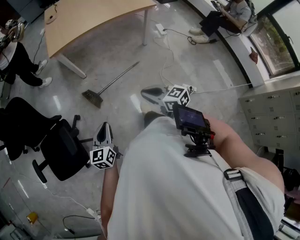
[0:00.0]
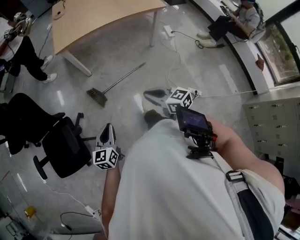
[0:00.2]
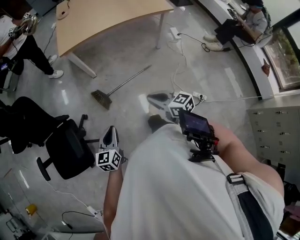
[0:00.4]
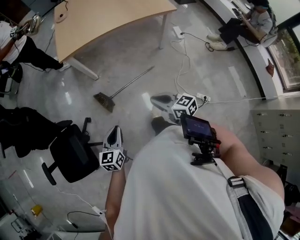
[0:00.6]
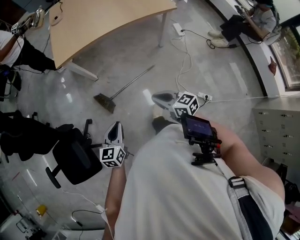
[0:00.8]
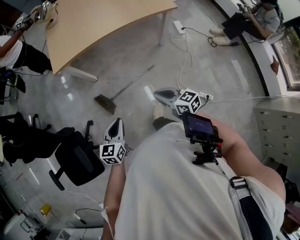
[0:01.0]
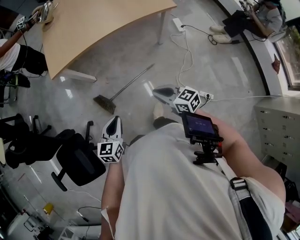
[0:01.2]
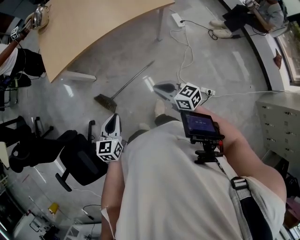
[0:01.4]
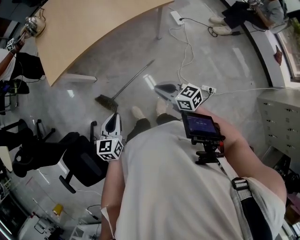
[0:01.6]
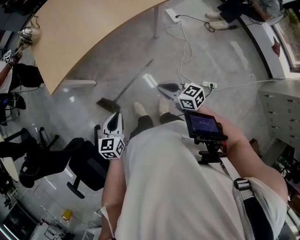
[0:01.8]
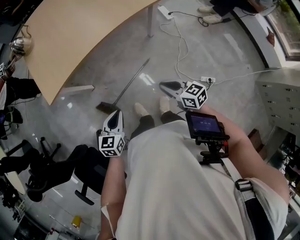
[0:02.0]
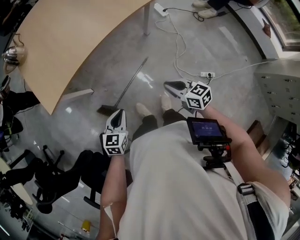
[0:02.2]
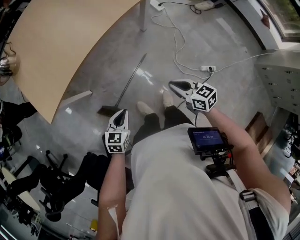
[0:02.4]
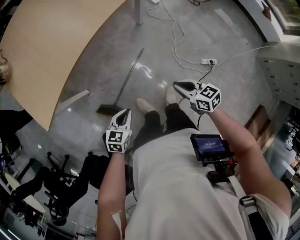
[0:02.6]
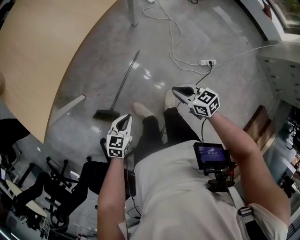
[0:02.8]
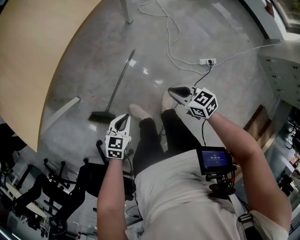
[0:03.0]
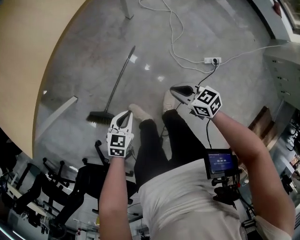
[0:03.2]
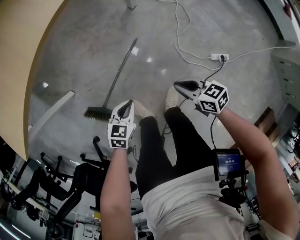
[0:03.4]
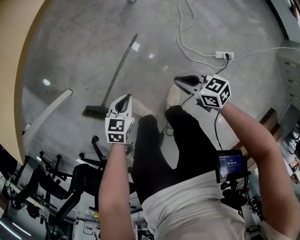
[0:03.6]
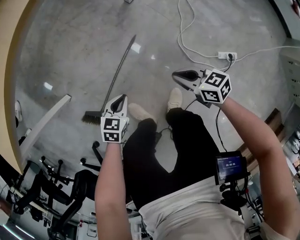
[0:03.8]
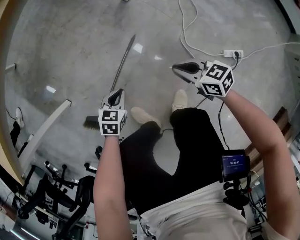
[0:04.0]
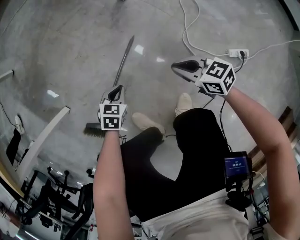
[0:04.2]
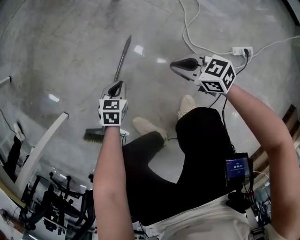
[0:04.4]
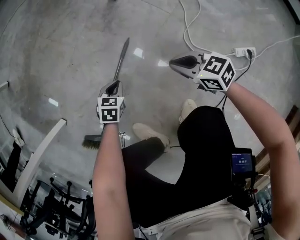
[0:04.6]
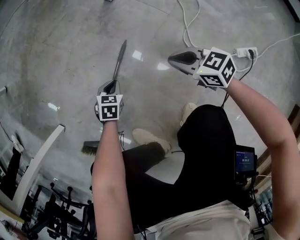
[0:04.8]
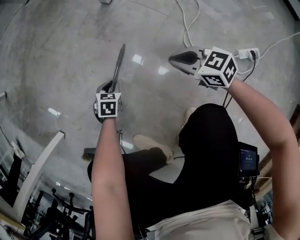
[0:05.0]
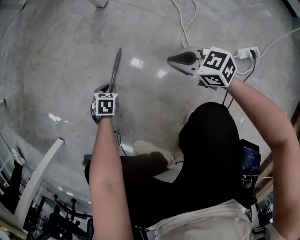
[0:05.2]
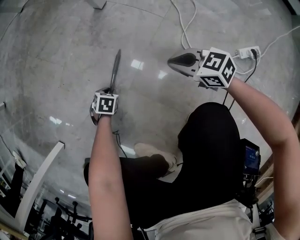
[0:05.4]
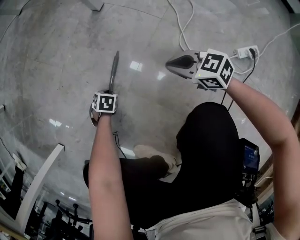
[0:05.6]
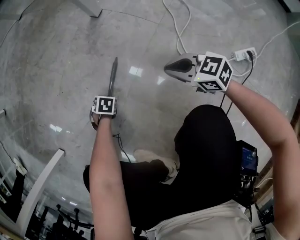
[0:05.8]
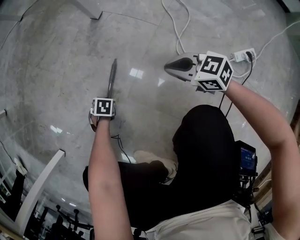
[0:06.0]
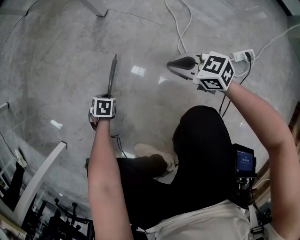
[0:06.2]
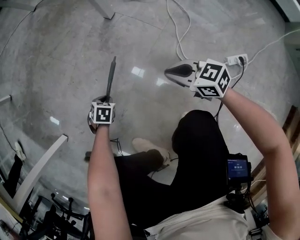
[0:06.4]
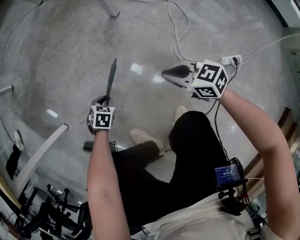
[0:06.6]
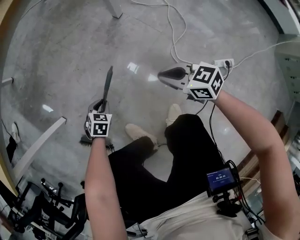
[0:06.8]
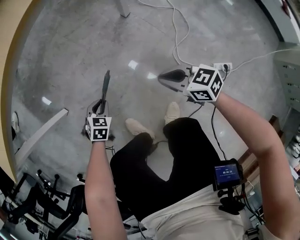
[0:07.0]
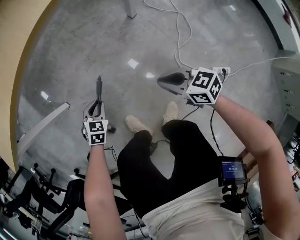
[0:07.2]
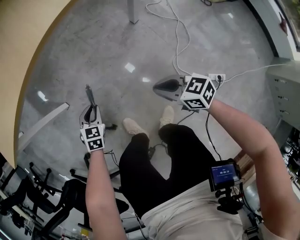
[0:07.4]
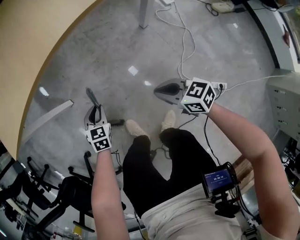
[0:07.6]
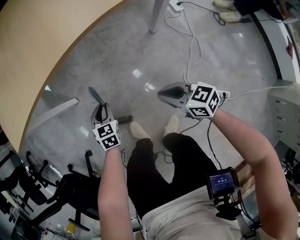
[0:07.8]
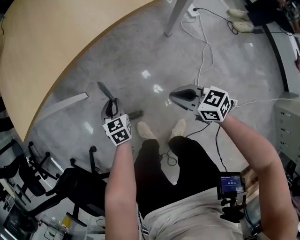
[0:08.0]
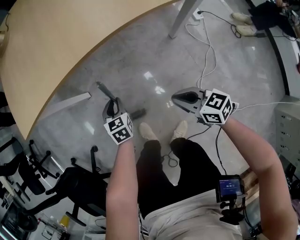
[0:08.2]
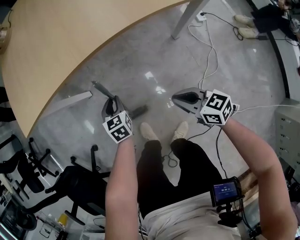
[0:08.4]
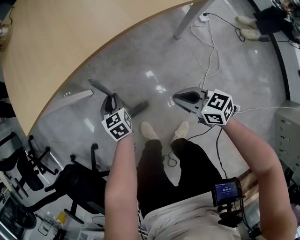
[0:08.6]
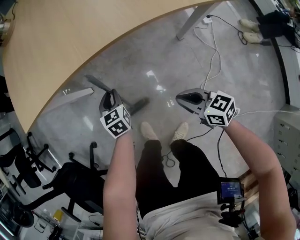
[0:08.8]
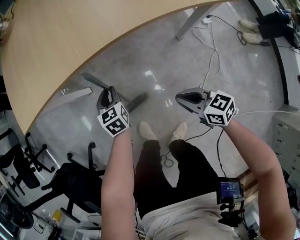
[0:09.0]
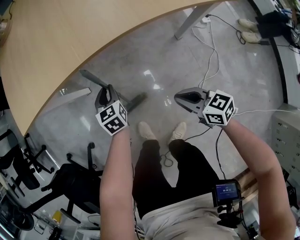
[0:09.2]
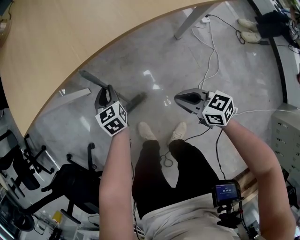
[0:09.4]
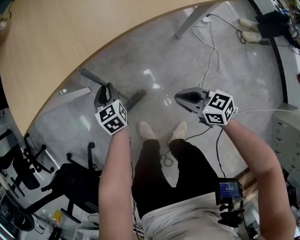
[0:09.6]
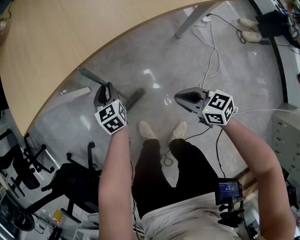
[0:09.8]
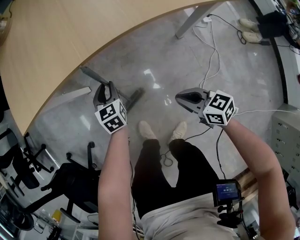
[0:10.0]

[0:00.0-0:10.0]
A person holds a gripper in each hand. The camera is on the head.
0:00.0 to 0:01.4: Both grippers move forward and to the right, some 25 cm.
0:01.4 to 0:02.8: Both grippers travel together downward, some 15 cm. The right gripper changes its angle by about 30 degrees, while the left gripper changes its angle by about 40 degrees.
0:02.8 to 0:04.2: The right gripper heads downward, covering about 25 cm. The left gripper travels downward and forward by some 35 cm.
0:04.2 to 0:05.8: The right gripper is displaced downward by approximately 15 cm. The left gripper heads downward, covering some 30 cm, and rotates roughly 30 degrees.
0:05.8 to 0:07.2: Both grippers move upward, approximately 35 cm. The left gripper rotates approximately 30 degrees.
0:07.2 to 0:08.6: The left gripper moves roughly 15 cm, and rolls counterclockwise, seen from behind, by about 40 degrees. Meanwhile the right gripper changes place by roughly 15 cm.
0:08.6 to 0:10.0: The left gripper moves approximately 5 cm.

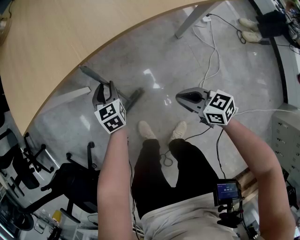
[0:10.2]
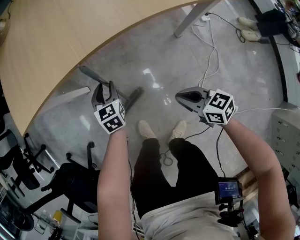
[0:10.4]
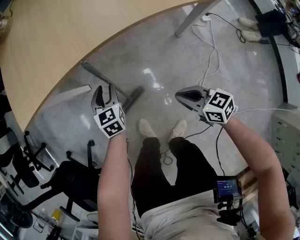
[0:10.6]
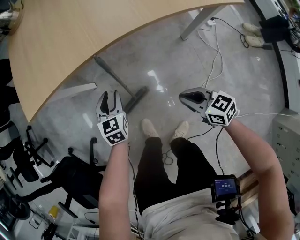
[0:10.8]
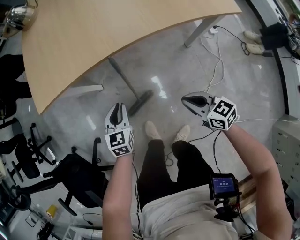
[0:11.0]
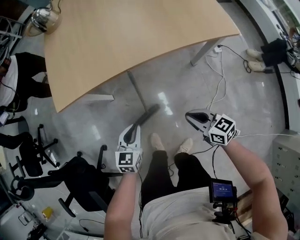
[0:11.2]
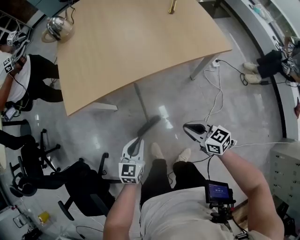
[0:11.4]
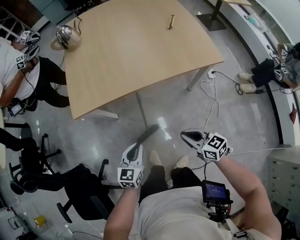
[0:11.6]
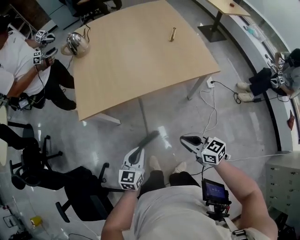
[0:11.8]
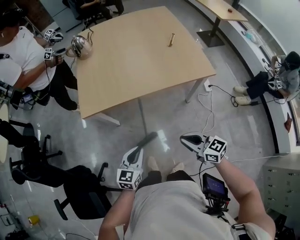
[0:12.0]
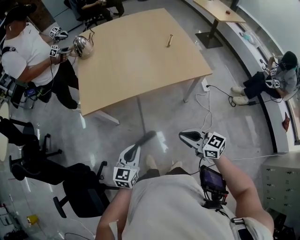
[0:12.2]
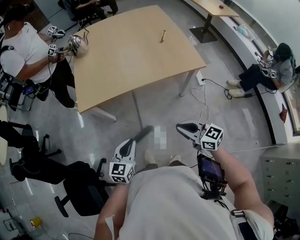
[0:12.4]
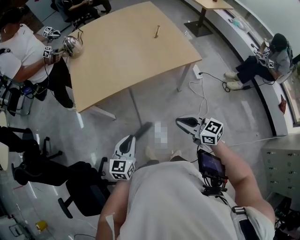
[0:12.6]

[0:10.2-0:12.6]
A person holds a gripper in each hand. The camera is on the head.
0:10.2 to 0:11.4: The right gripper heads upward, covering about 15 cm. Meanwhile the left gripper is displaced upward and backward by approximately 25 cm, swivels some 20 degrees, and closes its fingers.
0:11.4 to 0:12.6: Both grippers move upward, approximately 15 cm.

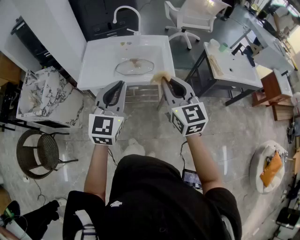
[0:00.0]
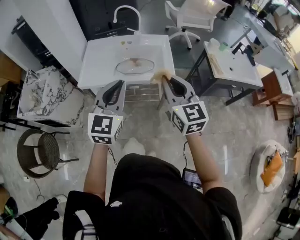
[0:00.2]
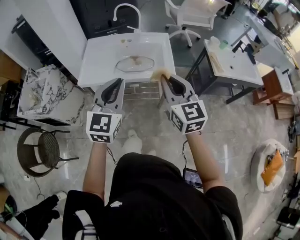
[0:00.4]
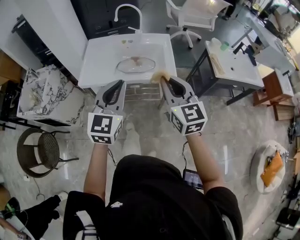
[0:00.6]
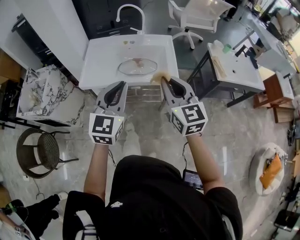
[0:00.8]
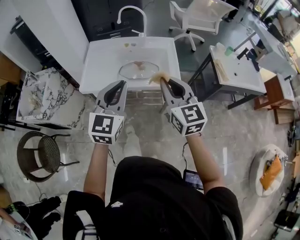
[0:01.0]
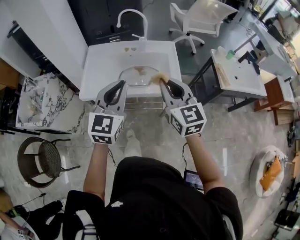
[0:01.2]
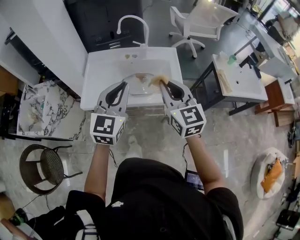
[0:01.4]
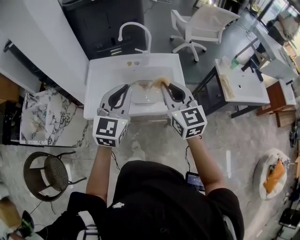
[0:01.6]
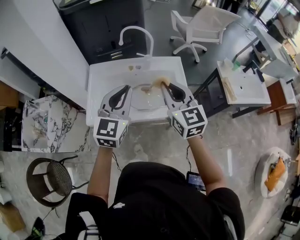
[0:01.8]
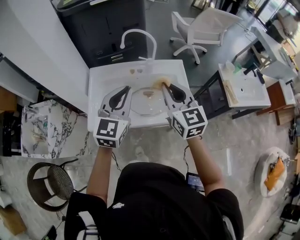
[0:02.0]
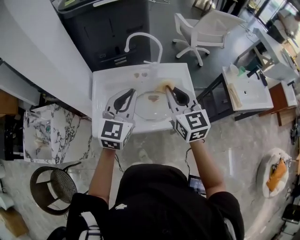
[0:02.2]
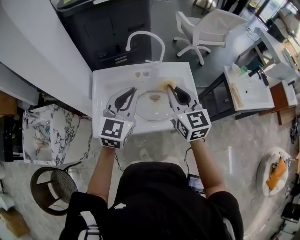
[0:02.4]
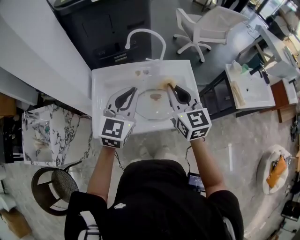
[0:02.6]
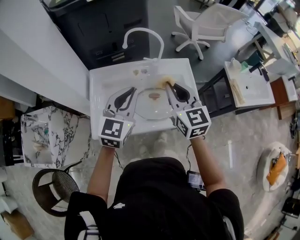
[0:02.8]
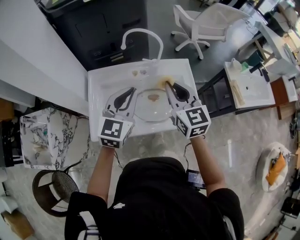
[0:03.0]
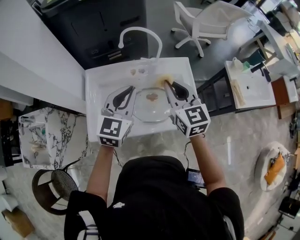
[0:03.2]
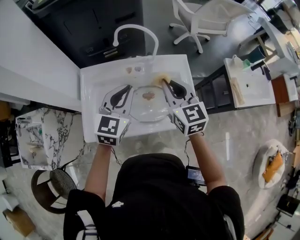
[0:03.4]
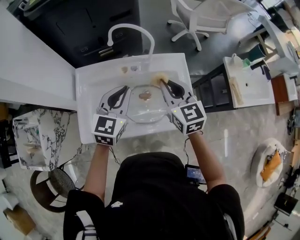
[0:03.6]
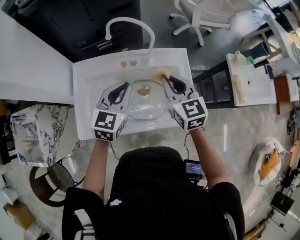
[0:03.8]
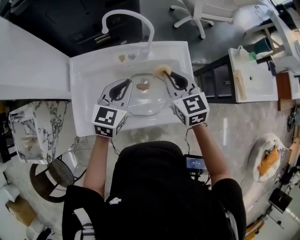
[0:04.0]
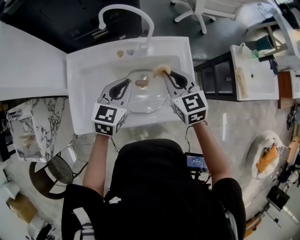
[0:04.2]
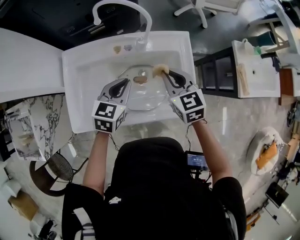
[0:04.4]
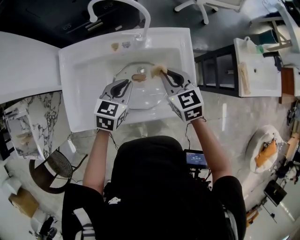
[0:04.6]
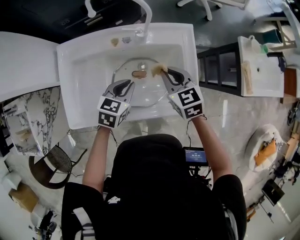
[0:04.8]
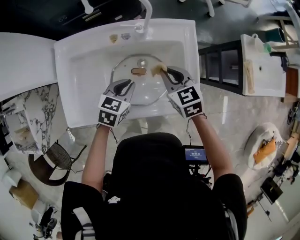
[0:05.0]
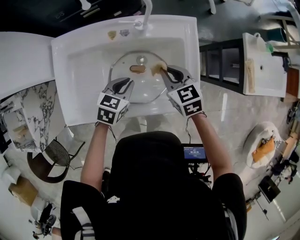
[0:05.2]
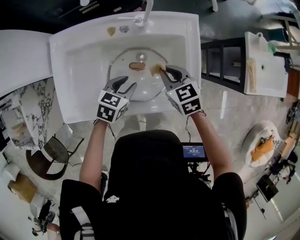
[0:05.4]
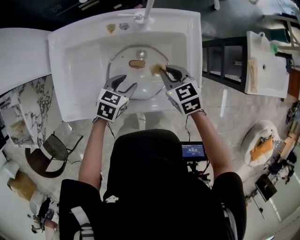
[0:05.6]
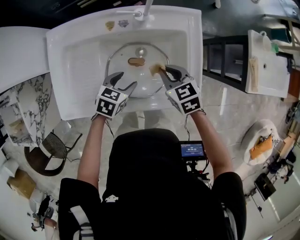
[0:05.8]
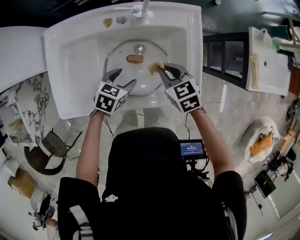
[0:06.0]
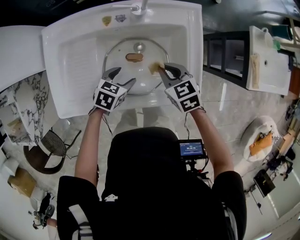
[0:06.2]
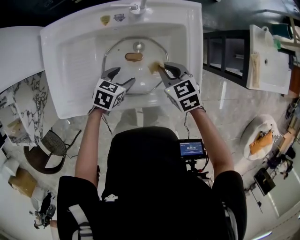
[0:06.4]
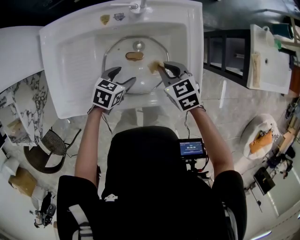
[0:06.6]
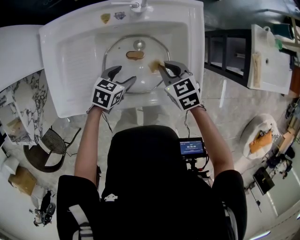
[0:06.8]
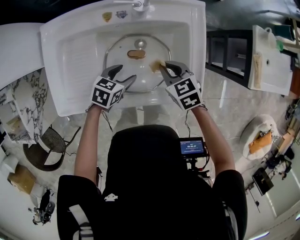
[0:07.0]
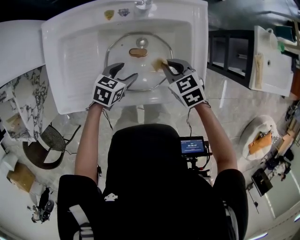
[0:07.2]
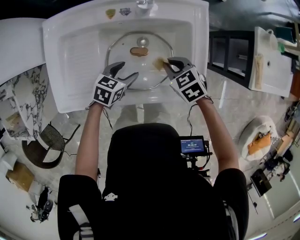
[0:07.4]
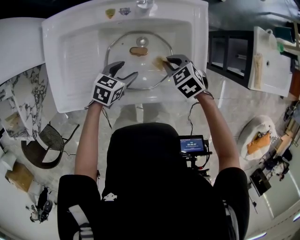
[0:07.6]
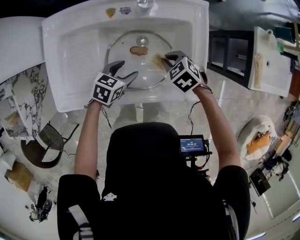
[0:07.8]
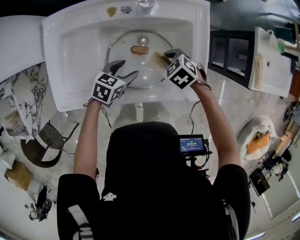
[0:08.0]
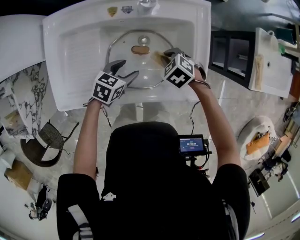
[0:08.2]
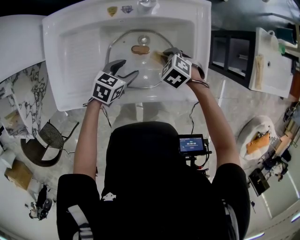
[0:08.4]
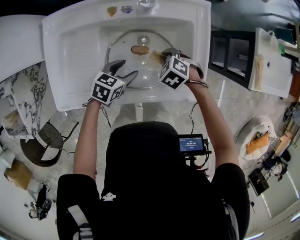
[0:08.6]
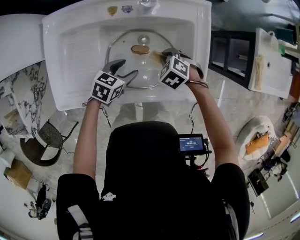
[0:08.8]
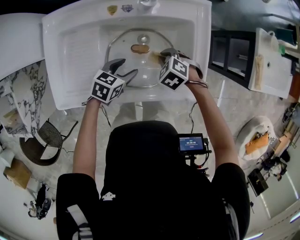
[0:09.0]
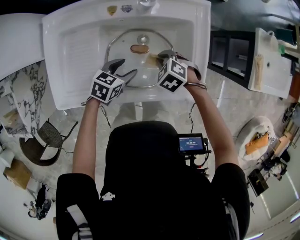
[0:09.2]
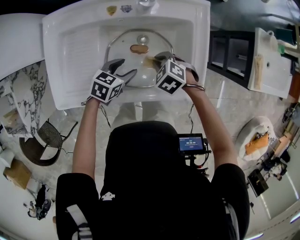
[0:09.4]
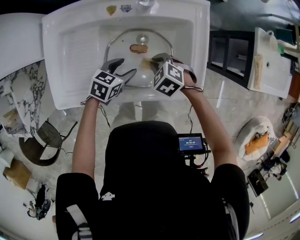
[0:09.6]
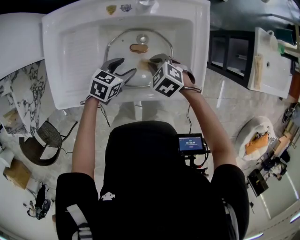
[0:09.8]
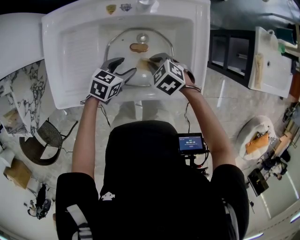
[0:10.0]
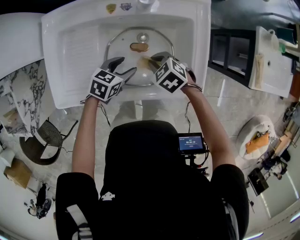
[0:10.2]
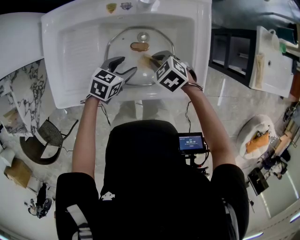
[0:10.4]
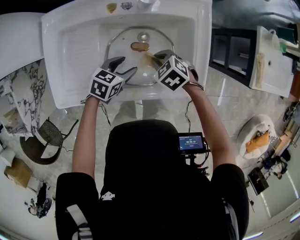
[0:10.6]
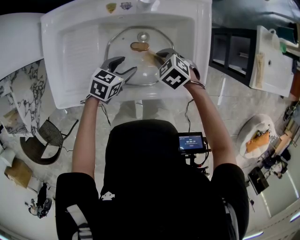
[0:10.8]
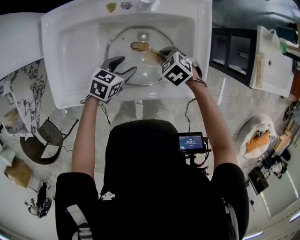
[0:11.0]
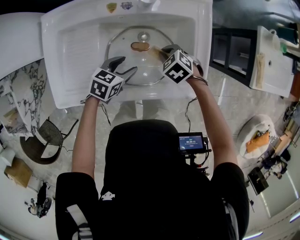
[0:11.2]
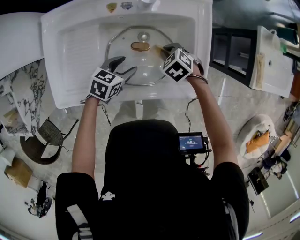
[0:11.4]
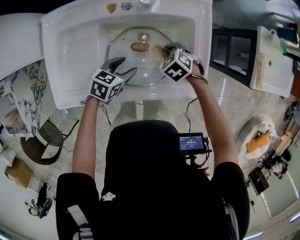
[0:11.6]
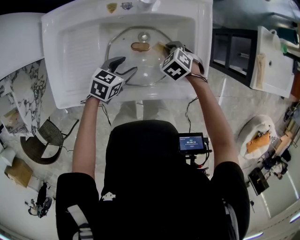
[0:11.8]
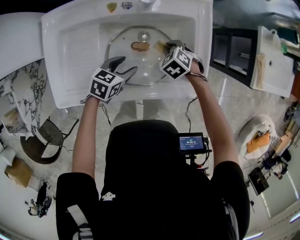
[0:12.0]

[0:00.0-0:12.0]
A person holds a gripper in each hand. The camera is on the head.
0:00.0 to 0:01.6: Both grippers travel together forward, roughly 20 cm.
0:01.6 to 0:03.0: The grippers both shift forward by approximately 15 cm.
0:03.0 to 0:04.4: The left gripper moves downward, some 20 cm, and rotates approximately 30 degrees, while the right gripper travels downward and forward by roughly 20 cm, and turns by about 20 degrees.
0:04.4 to 0:06.0: The grippers both shift downward by about 15 cm. The left gripper rotates some 30 degrees, and opens up.
0:06.0 to 0:07.6: The right gripper swivels some 20 degrees.
0:07.6 to 0:09.0: There are only small adjustments of the grippers.
0:09.0 to 0:10.4: The grippers make only small movements.
0:10.4 to 0:12.0: The right gripper shifts by roughly 10 cm.
